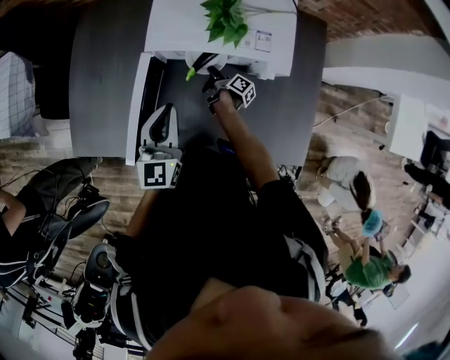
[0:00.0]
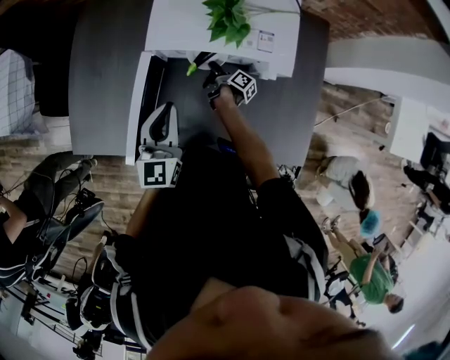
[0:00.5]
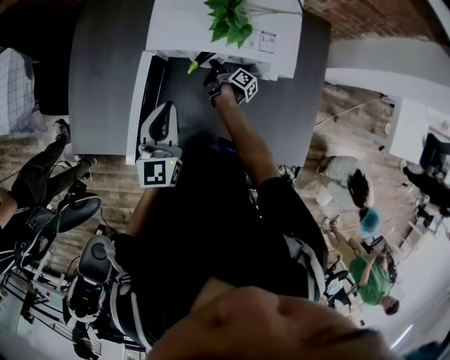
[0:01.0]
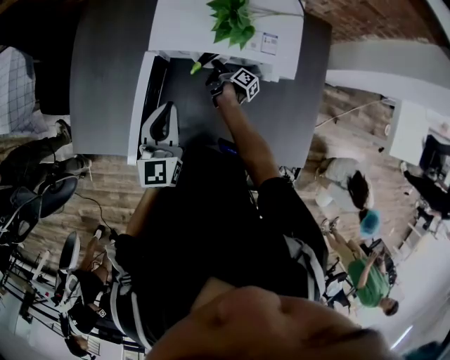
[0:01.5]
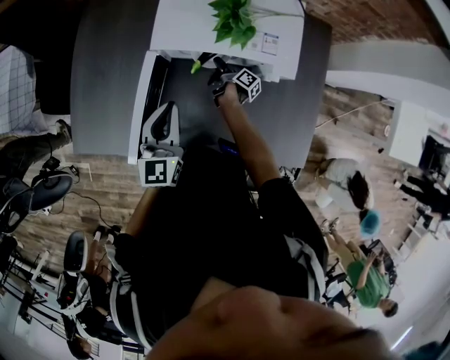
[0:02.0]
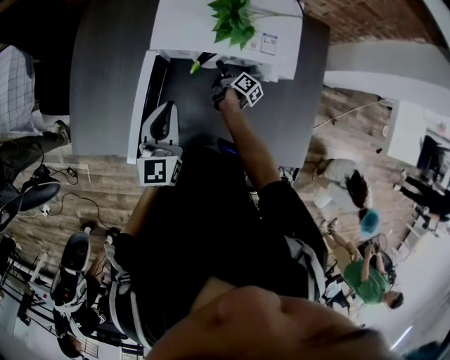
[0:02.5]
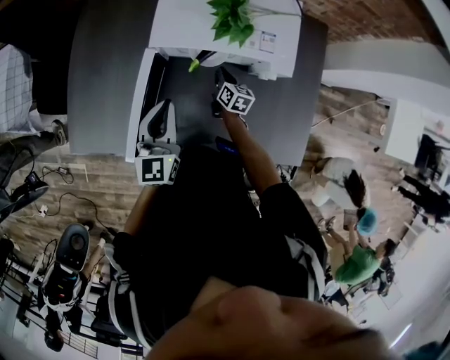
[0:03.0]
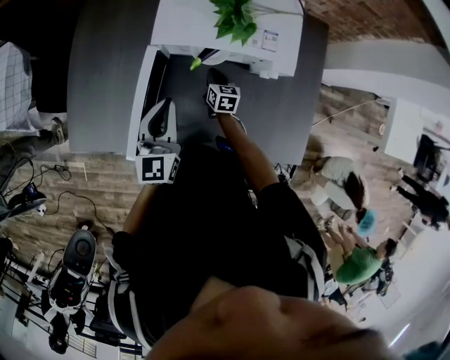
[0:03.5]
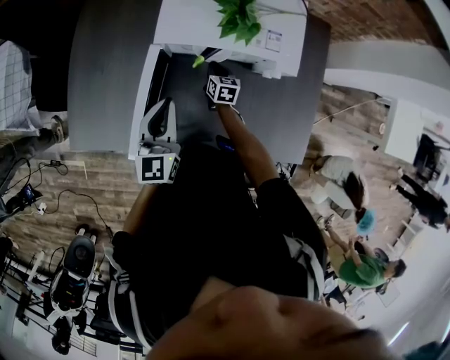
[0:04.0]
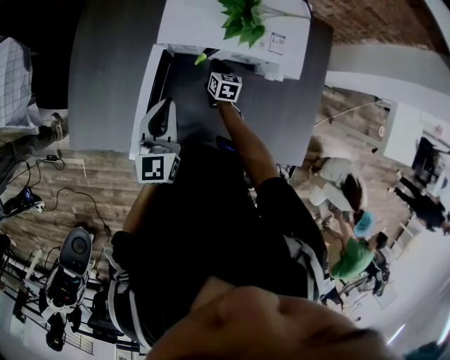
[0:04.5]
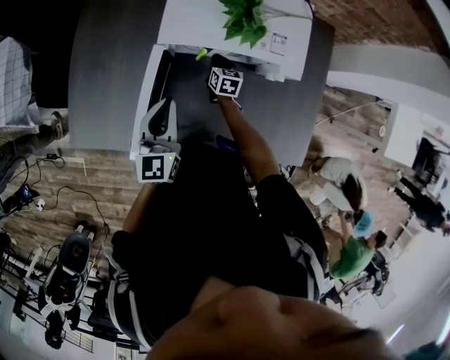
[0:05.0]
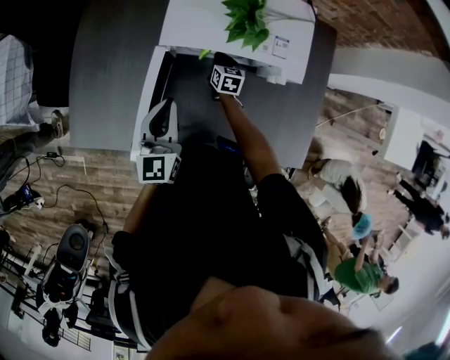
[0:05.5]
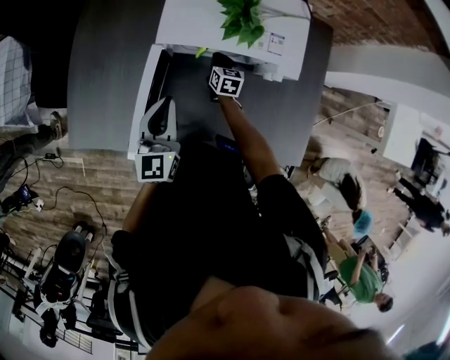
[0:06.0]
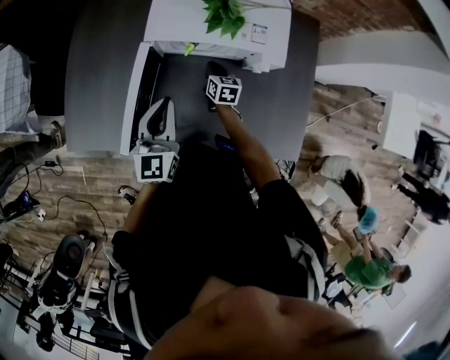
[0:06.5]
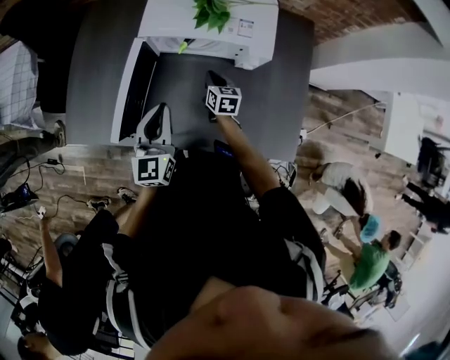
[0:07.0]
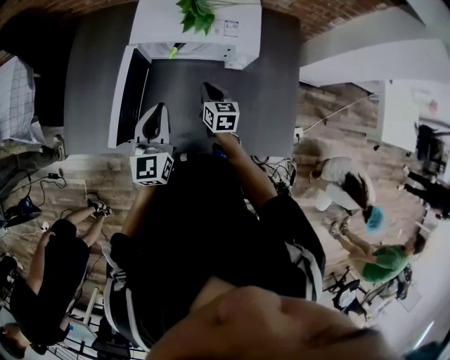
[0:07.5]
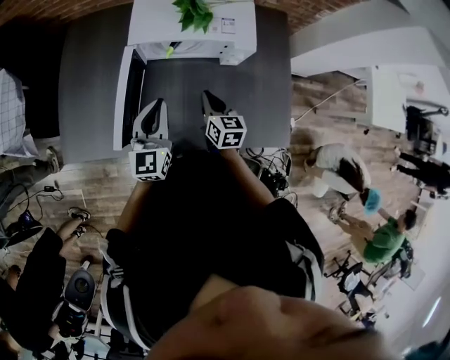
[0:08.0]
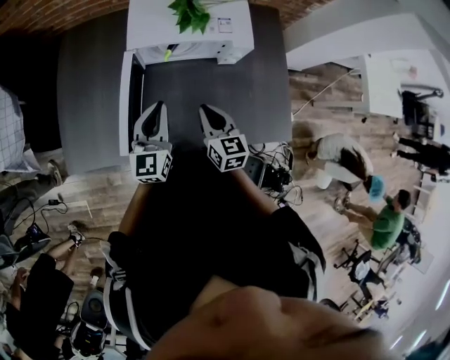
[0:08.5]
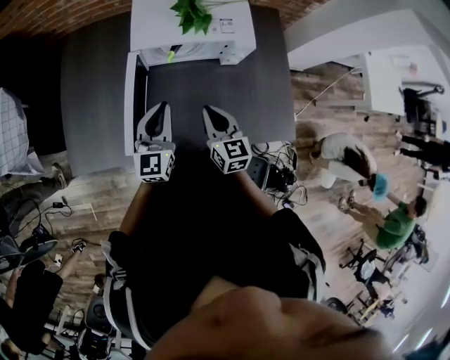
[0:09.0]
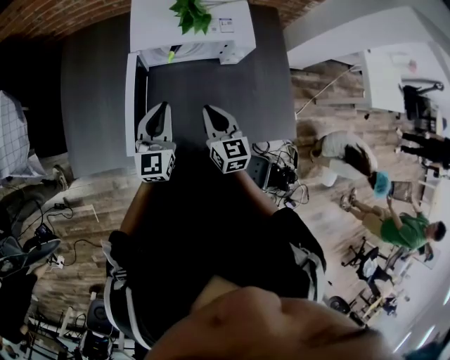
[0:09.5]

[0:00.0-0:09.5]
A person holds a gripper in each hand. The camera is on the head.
0:05.5 to 0:07.5: The left gripper shifts by about 10 cm.

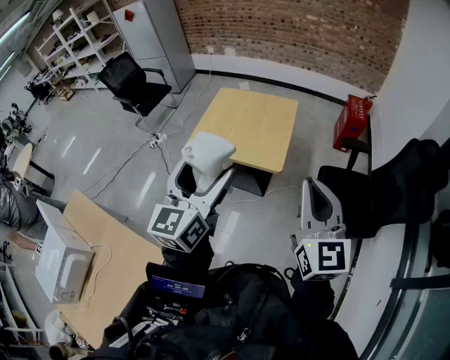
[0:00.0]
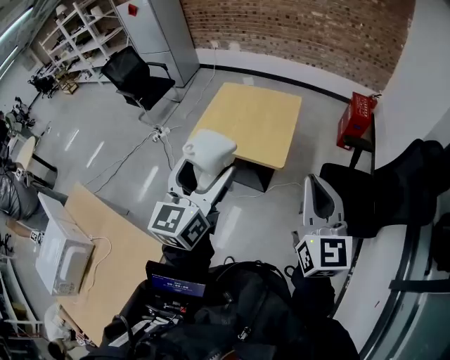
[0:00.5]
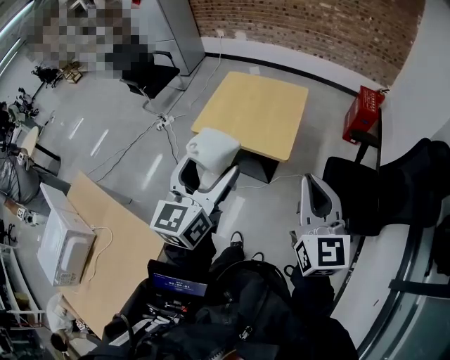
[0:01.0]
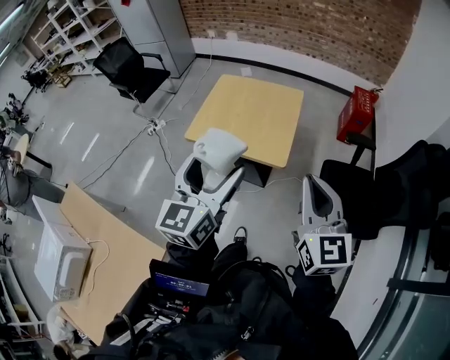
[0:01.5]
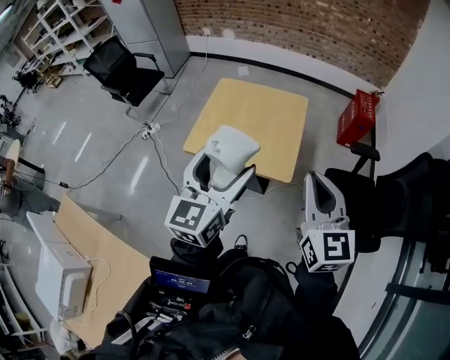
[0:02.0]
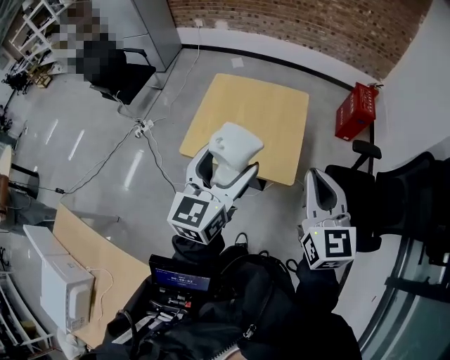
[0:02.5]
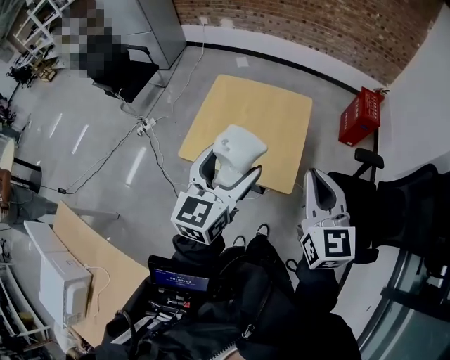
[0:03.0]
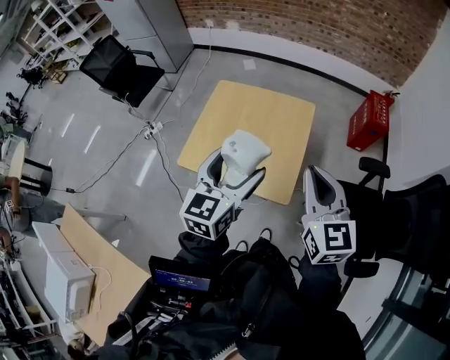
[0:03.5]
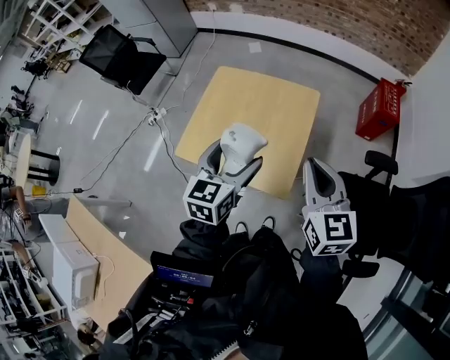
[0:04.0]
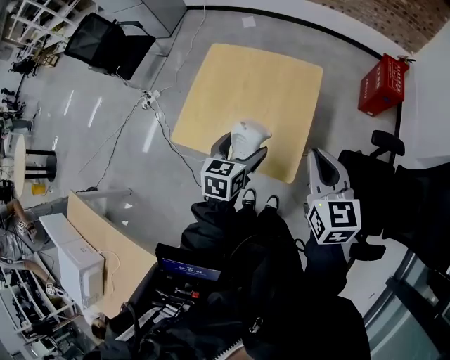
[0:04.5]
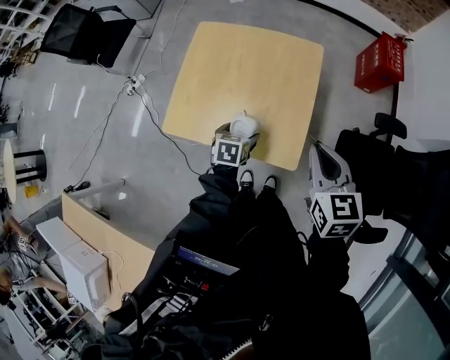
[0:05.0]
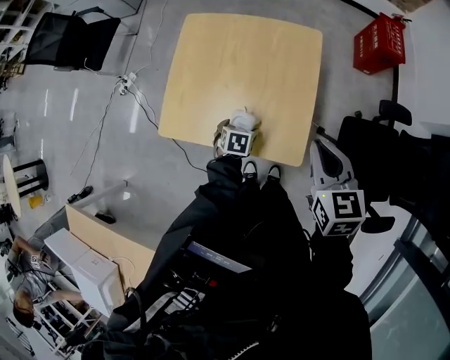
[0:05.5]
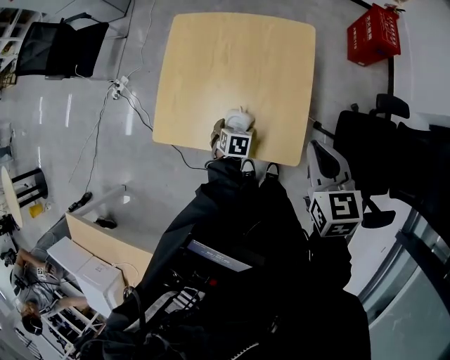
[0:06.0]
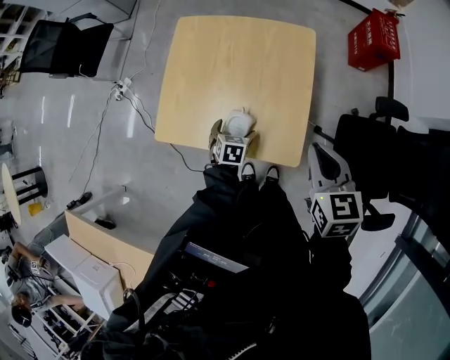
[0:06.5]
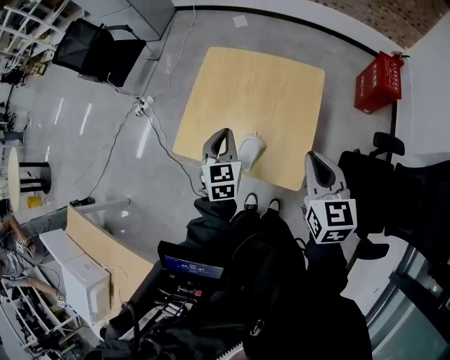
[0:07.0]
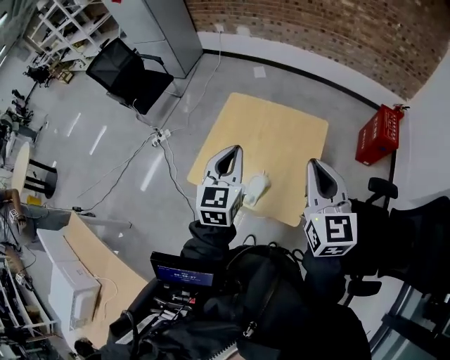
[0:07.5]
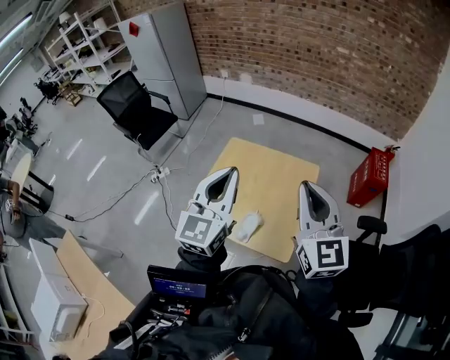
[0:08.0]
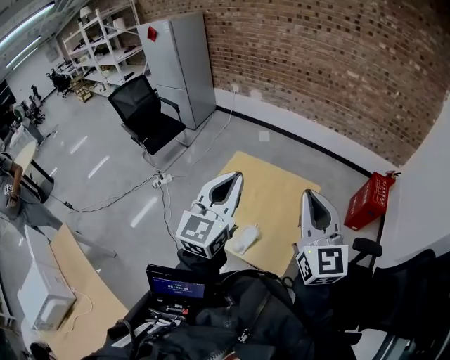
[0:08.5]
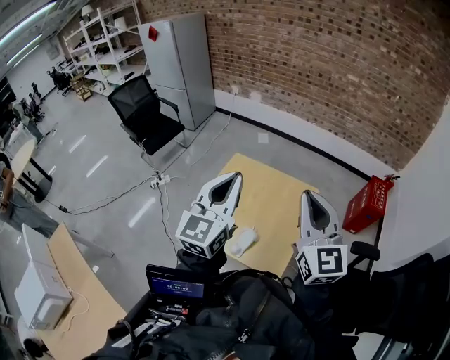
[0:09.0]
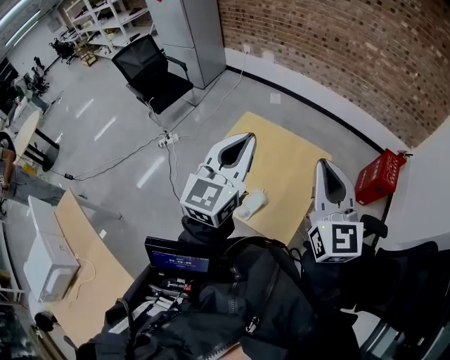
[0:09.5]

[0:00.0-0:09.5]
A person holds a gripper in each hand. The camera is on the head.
0:00.0 to 0:02.0: Both grippers move forward, about 15 cm.
0:02.0 to 0:04.0: The left gripper goes roughly 25 cm forward and downward, while the right gripper is displaced forward by roughly 20 cm.
0:04.0 to 0:05.5: The right gripper heads downward, covering approximately 15 cm, and rotates roughly 20 degrees, while the left gripper heads downward, covering approximately 40 cm, and tilts its fingers about 50 degrees downward.
0:05.5 to 0:07.5: The left gripper is displaced upward by some 40 cm, angles its fingers upward, by approximately 50 degrees, and closes, while the right gripper shifts roughly 20 cm upward, and swivels approximately 30 degrees.
0:07.5 to 0:09.5: The left gripper heads upward, covering about 15 cm, and rotates some 20 degrees, while the right gripper is displaced upward by roughly 10 cm.

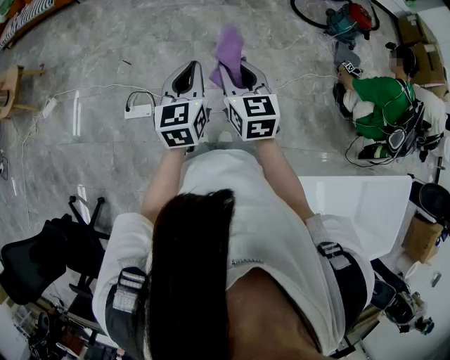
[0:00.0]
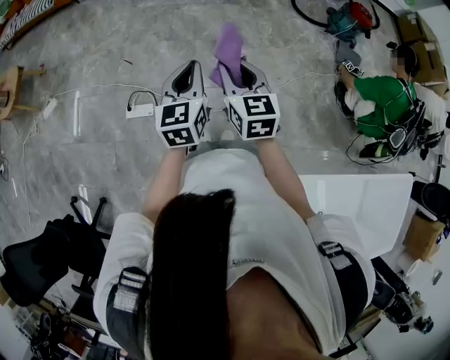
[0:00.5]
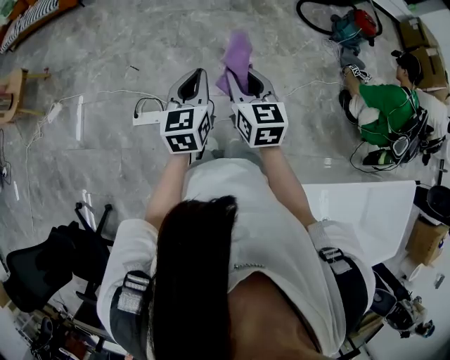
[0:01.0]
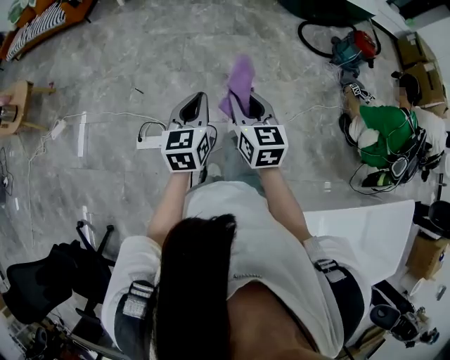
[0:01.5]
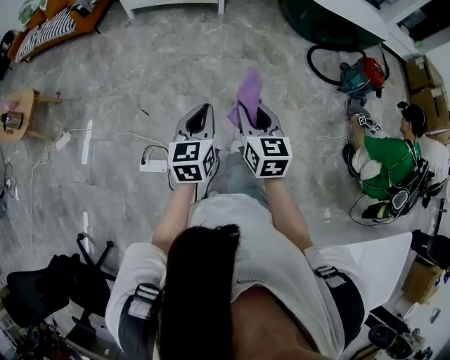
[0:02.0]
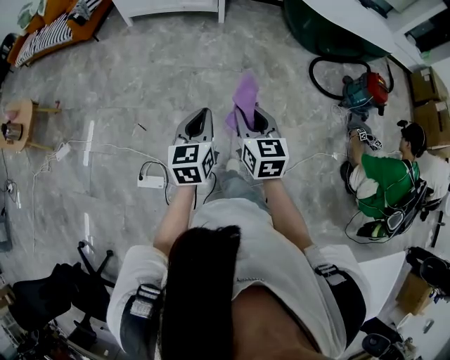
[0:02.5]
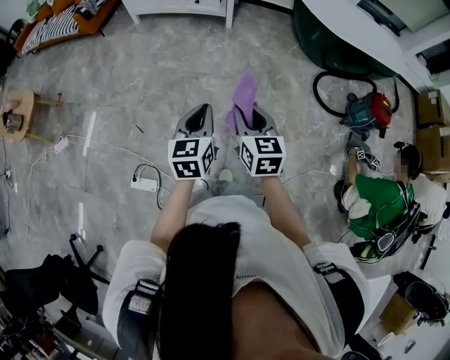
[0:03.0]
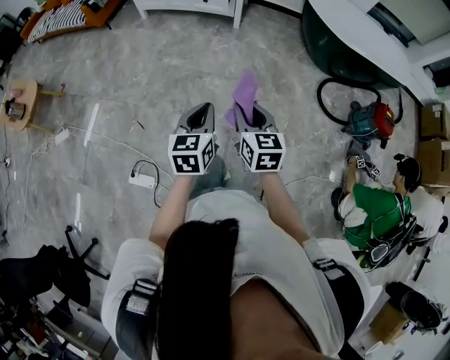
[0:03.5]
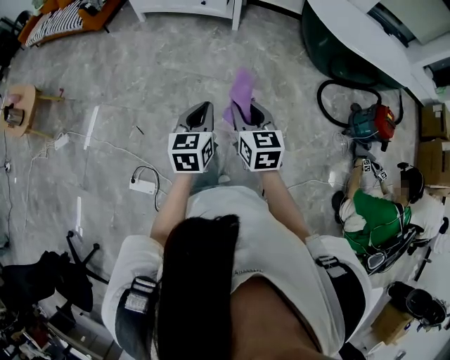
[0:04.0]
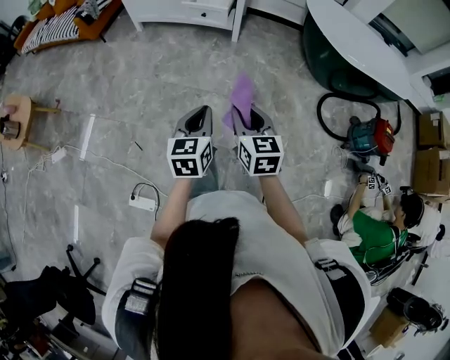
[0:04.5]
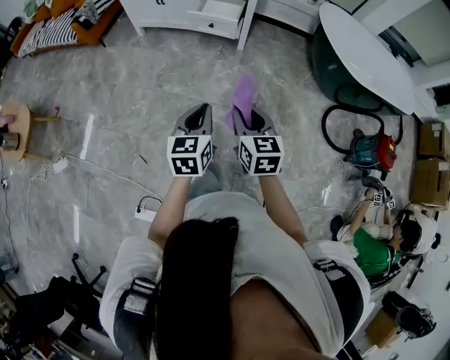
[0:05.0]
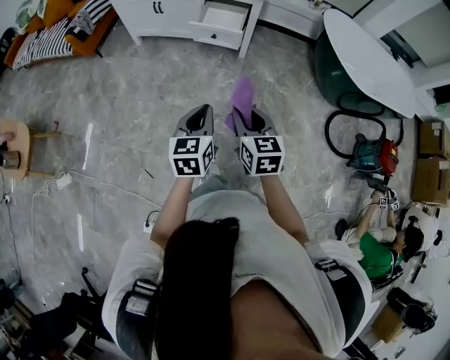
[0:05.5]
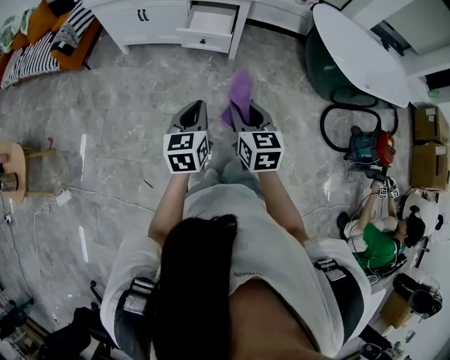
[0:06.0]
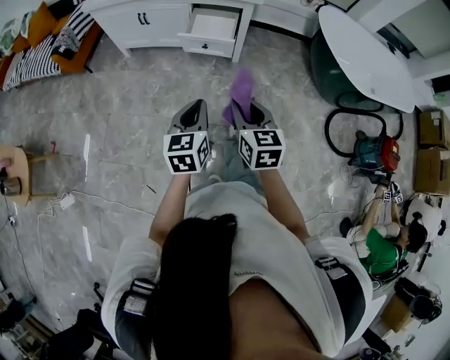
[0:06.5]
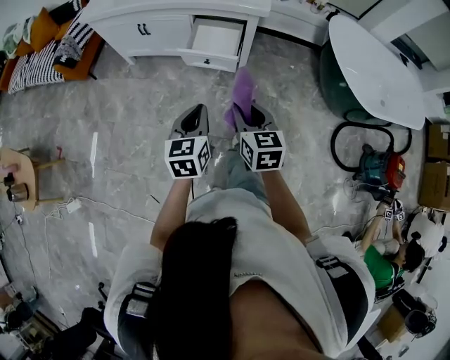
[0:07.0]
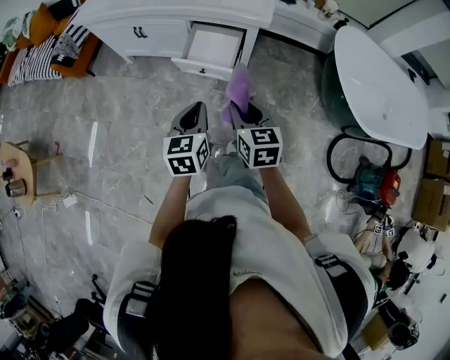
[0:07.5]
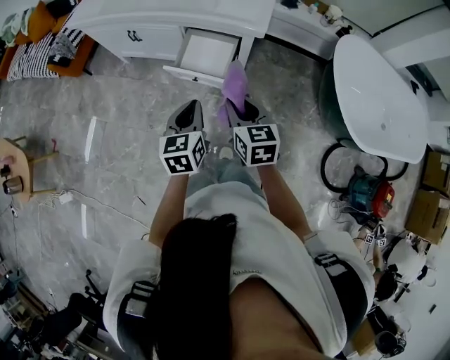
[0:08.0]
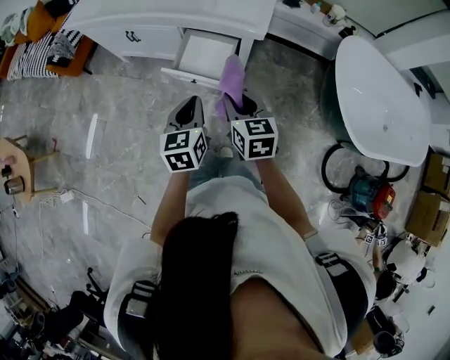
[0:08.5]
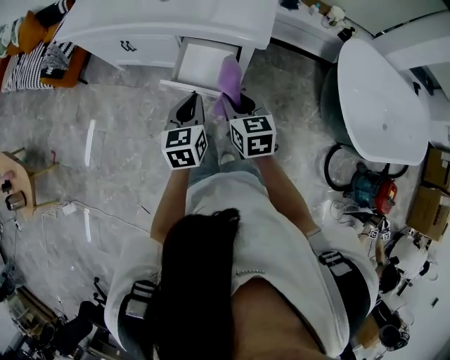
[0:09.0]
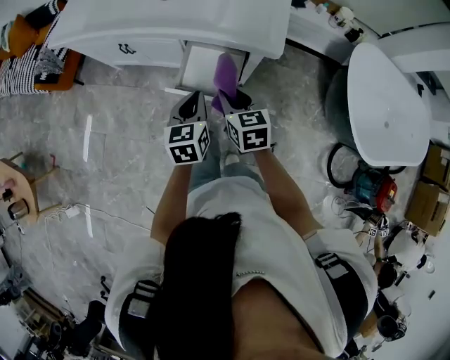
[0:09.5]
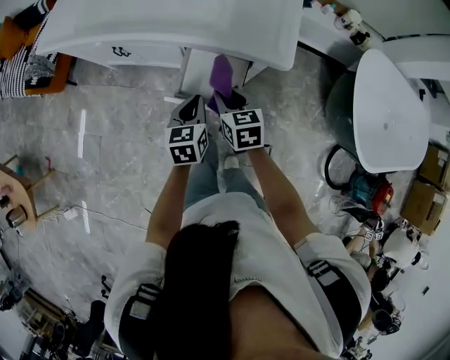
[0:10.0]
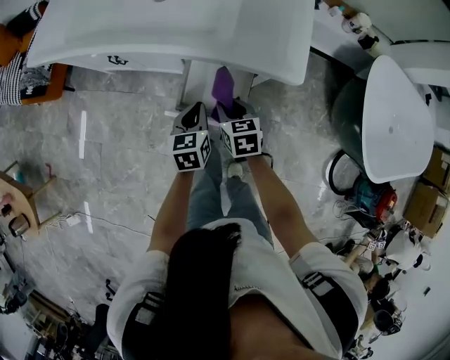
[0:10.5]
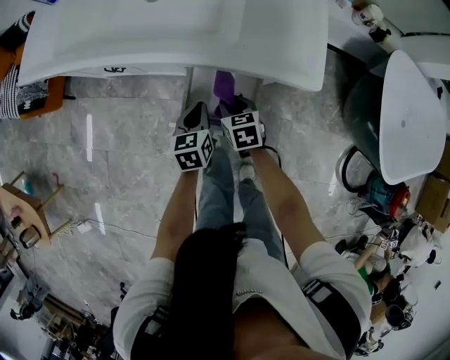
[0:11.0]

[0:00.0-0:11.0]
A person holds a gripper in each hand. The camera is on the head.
0:00.0 to 0:02.0: The two grippers go some 20 cm forward.
0:02.0 to 0:03.5: Both grippers travel together forward, some 25 cm.
0:03.5 to 0:05.5: The grippers both shift forward by approximately 35 cm.
0:05.5 to 0:07.5: The two grippers go about 30 cm forward.
0:07.5 to 0:09.0: Both grippers travel together forward, roughly 15 cm.
0:09.0 to 0:11.0: Both grippers travel together downward and forward, approximately 30 cm.
